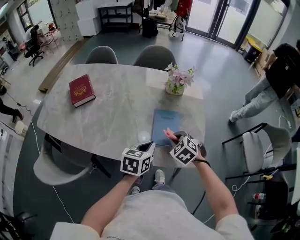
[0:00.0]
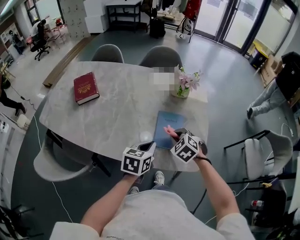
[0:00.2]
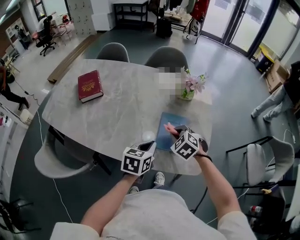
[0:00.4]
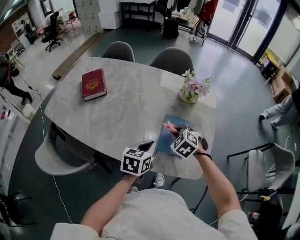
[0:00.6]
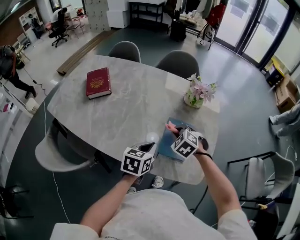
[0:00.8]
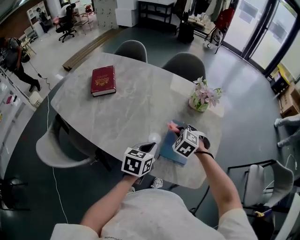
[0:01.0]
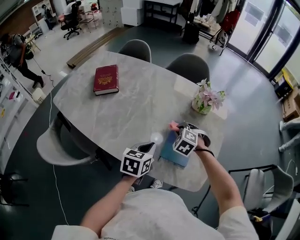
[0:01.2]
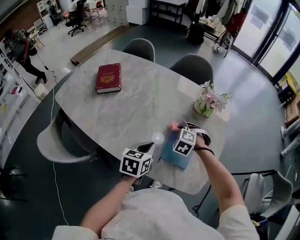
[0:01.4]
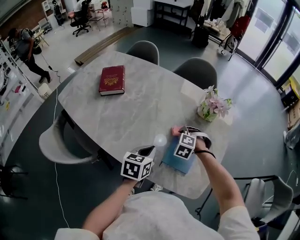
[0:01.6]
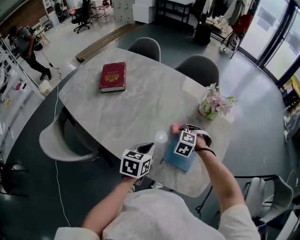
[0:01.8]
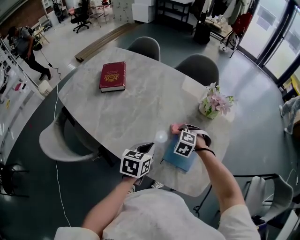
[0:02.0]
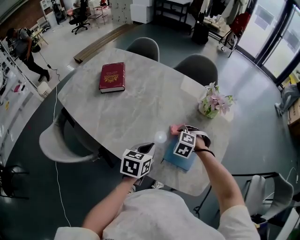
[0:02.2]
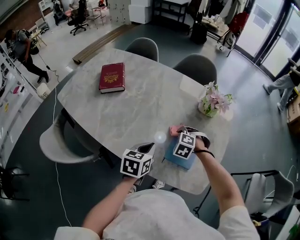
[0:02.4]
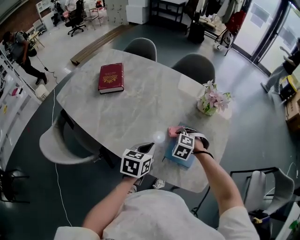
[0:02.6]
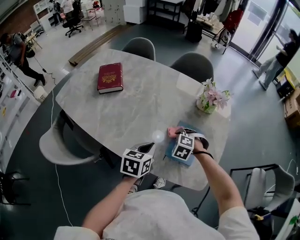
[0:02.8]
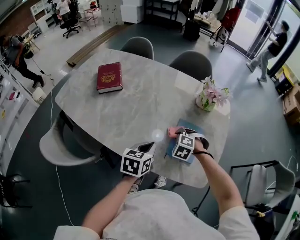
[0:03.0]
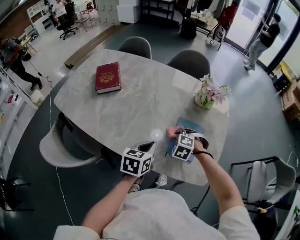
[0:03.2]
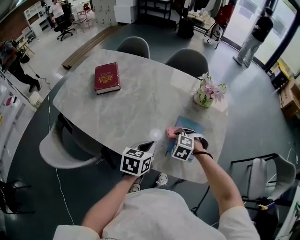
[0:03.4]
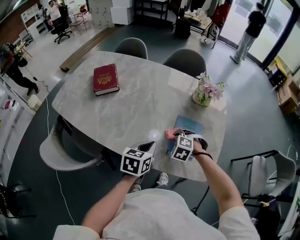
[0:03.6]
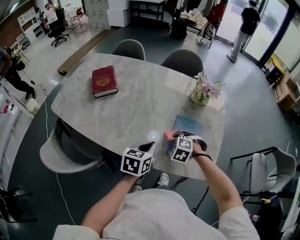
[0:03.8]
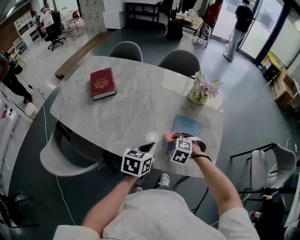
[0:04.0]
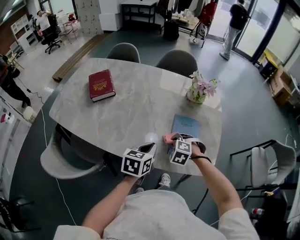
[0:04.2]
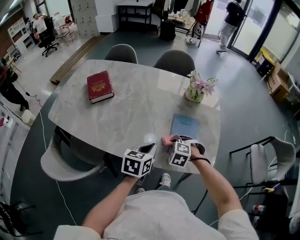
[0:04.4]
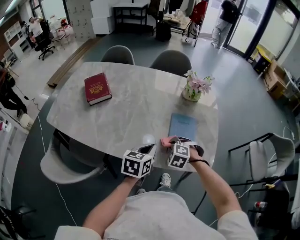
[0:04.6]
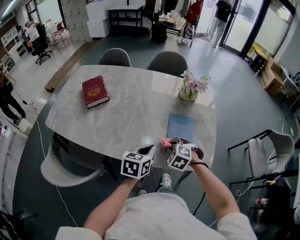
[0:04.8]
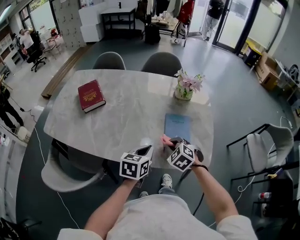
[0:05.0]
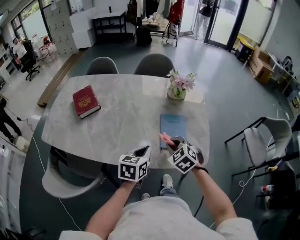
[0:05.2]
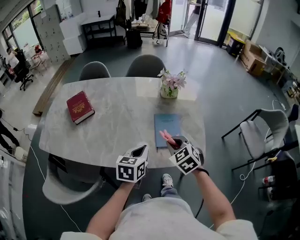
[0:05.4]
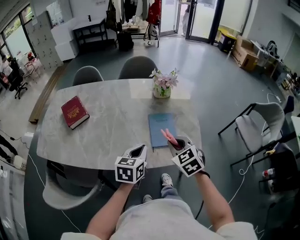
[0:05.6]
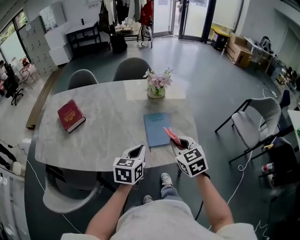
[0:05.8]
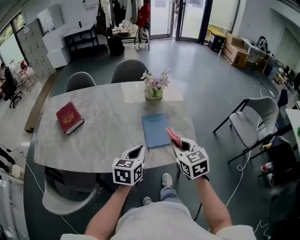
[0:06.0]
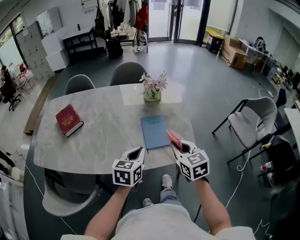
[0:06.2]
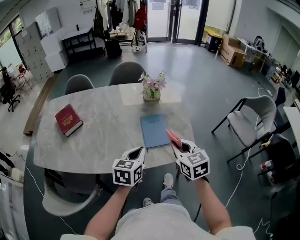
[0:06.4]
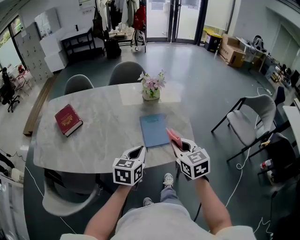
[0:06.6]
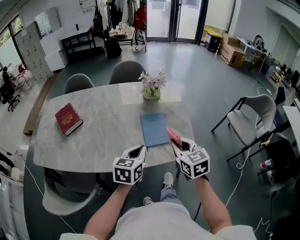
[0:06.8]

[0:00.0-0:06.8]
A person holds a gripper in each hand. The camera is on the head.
0.0 to 1.4 s: The right gripper heads forward and to the left, covering approximately 15 cm, and turns by some 40 degrees. Meanwhile the left gripper heads to the left and forward, covering some 10 cm.
1.4 to 2.8 s: The right gripper ends up some 5 cm from where it was.
2.8 to 4.0 s: The right gripper shifts about 5 cm backward.
4.0 to 5.4 s: The right gripper moves upward and backward, approximately 15 cm, and rolls clockwise, seen from behind, by roughly 40 degrees.
5.4 to 6.8 s: The right gripper is displaced to the right and upward by about 10 cm, and turns by approximately 30 degrees, while the left gripper shifts by approximately 5 cm.

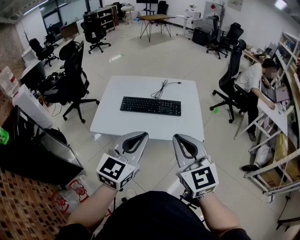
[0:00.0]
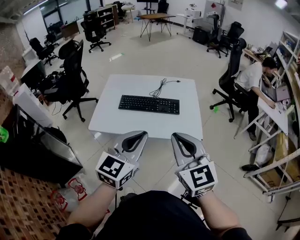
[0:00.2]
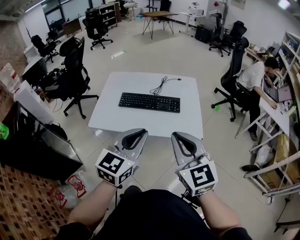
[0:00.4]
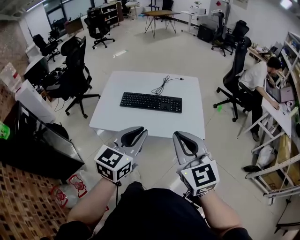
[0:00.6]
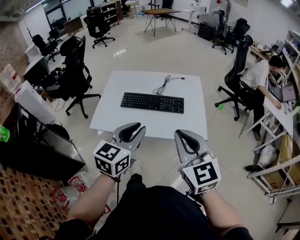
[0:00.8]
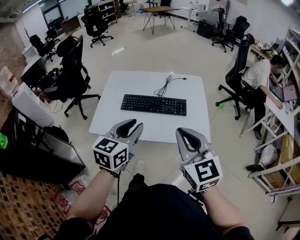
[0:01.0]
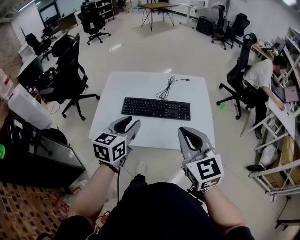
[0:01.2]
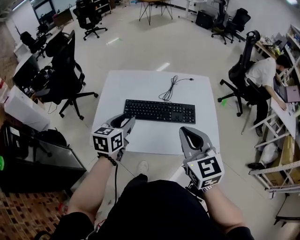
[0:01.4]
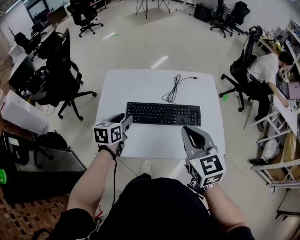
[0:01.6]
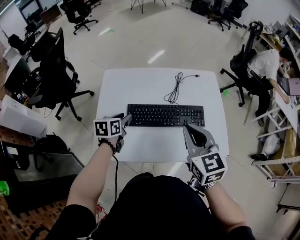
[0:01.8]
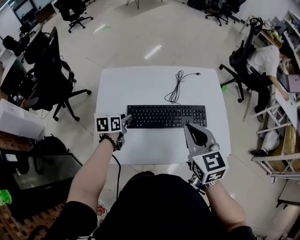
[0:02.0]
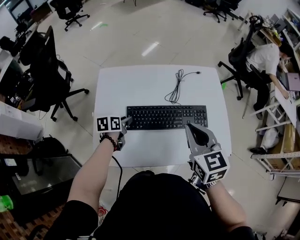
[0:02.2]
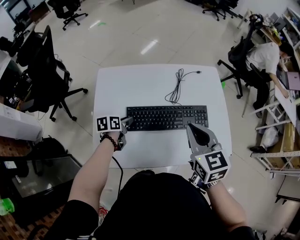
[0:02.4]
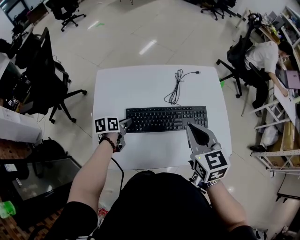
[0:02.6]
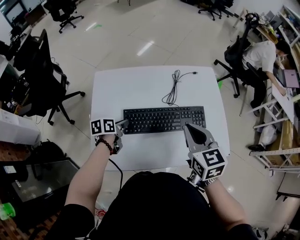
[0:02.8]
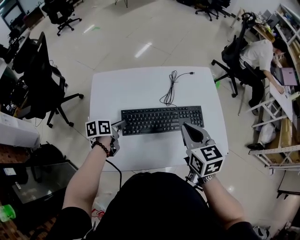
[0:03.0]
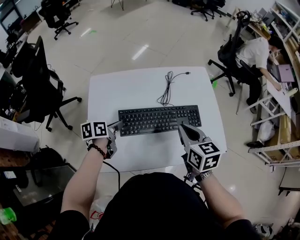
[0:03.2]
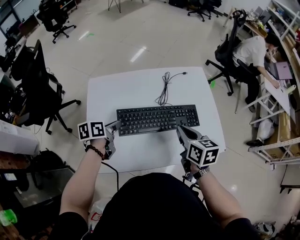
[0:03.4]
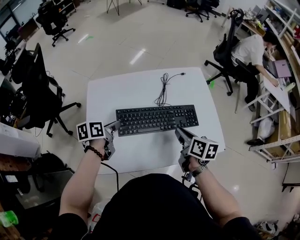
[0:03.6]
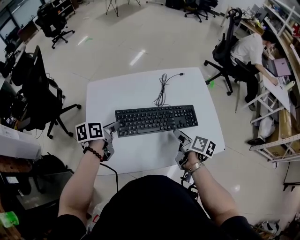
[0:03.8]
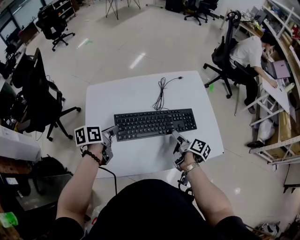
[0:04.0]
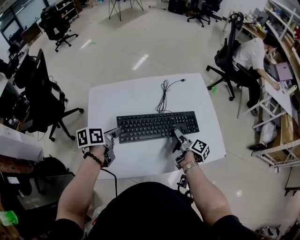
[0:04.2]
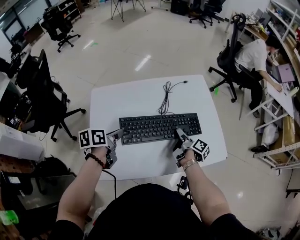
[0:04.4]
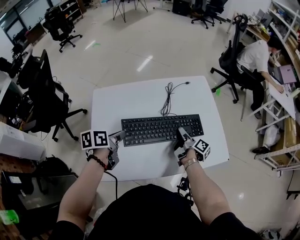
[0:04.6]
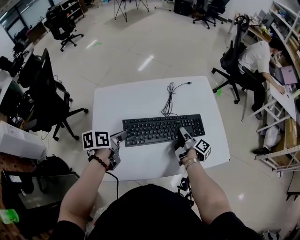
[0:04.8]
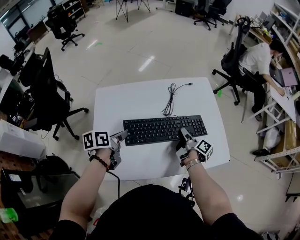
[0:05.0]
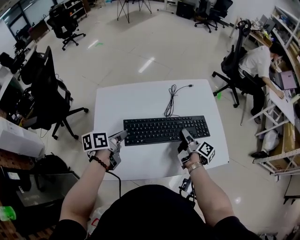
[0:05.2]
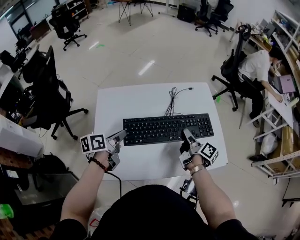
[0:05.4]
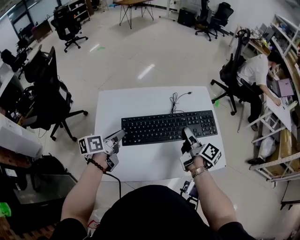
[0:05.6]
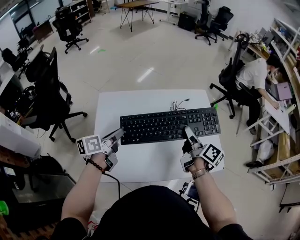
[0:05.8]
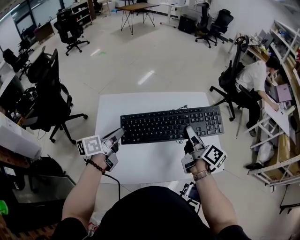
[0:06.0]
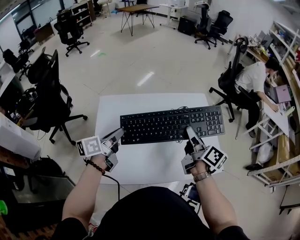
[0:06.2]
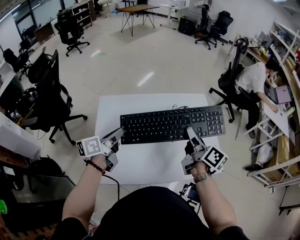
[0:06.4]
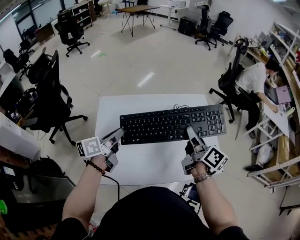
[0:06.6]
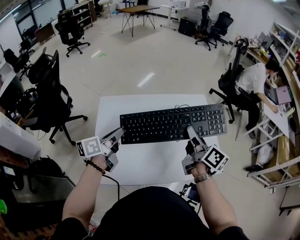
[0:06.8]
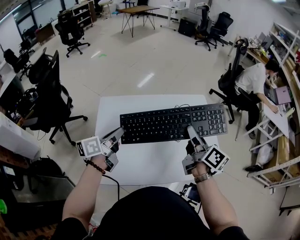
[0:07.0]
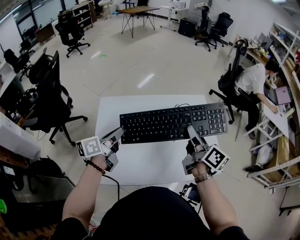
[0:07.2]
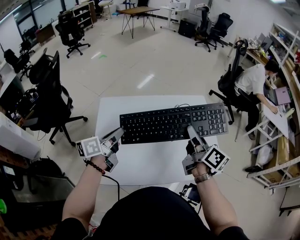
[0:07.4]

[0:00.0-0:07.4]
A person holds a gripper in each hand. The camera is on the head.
0.0 to 1.4 s: The left gripper is displaced forward, downward and to the left by about 30 cm, turns by some 30 degrees, and opens. Meanwhile the right gripper heads forward, covering about 20 cm.
1.4 to 3.0 s: The left gripper heads downward, forward and to the left, covering about 25 cm, and changes its angle by roughly 40 degrees, while the right gripper is displaced forward and downward by some 15 cm, and swivels some 20 degrees.
3.0 to 4.4 s: The right gripper travels downward by roughly 20 cm, twists about 80 degrees clockwise, seen from behind, and opens up; the left gripper goes approximately 10 cm upward.
4.4 to 6.0 s: The left gripper travels upward by some 5 cm, and turns by some 30 degrees, while the right gripper moves upward, approximately 20 cm, changes its angle by about 30 degrees, and closes.
6.0 to 7.4 s: The grippers move only a little.

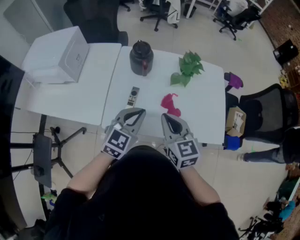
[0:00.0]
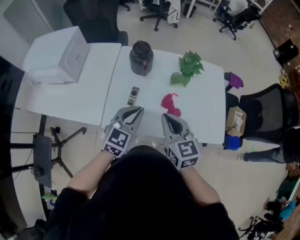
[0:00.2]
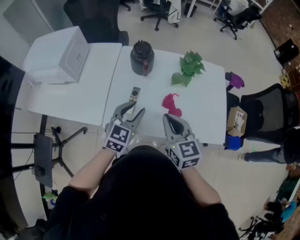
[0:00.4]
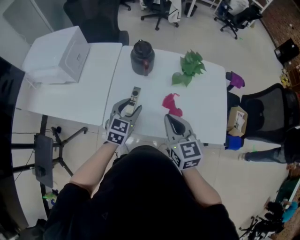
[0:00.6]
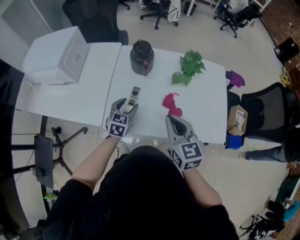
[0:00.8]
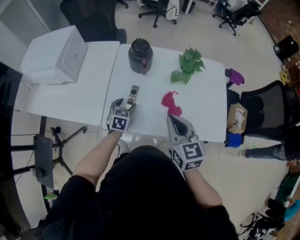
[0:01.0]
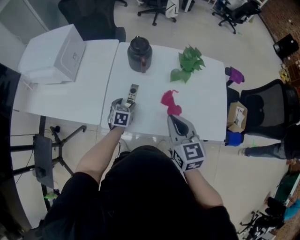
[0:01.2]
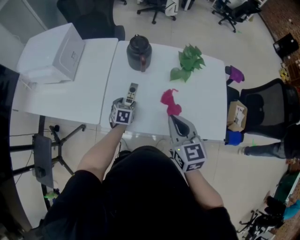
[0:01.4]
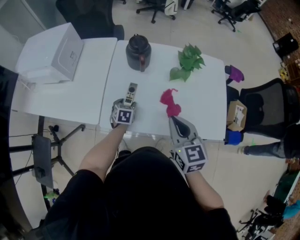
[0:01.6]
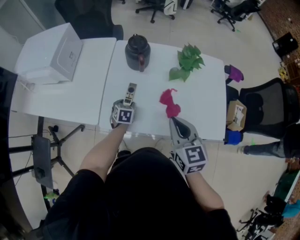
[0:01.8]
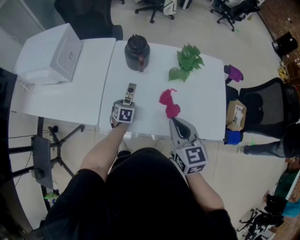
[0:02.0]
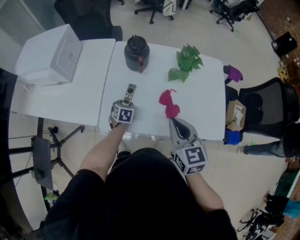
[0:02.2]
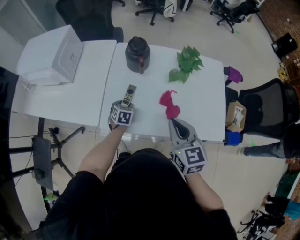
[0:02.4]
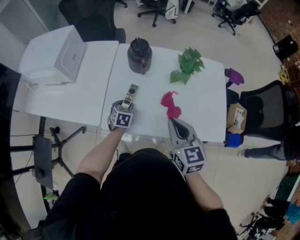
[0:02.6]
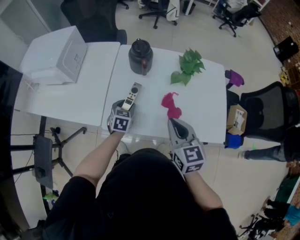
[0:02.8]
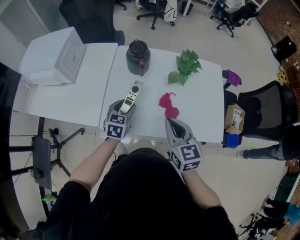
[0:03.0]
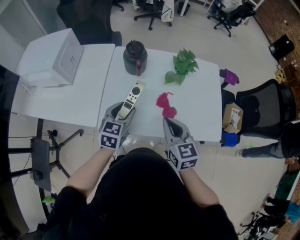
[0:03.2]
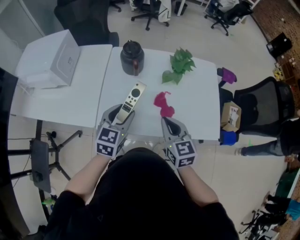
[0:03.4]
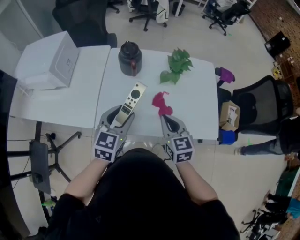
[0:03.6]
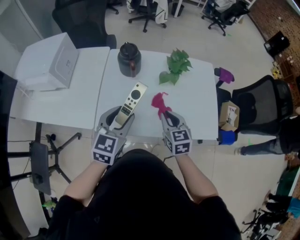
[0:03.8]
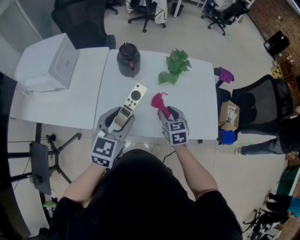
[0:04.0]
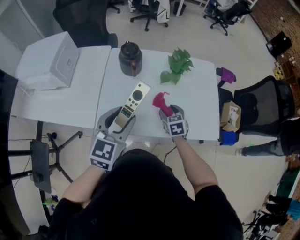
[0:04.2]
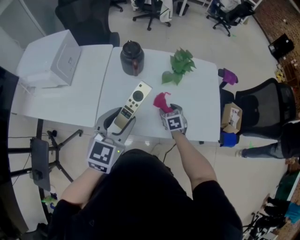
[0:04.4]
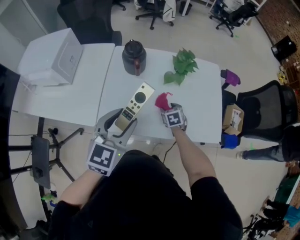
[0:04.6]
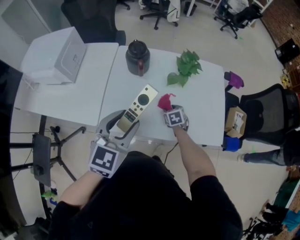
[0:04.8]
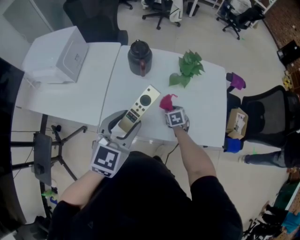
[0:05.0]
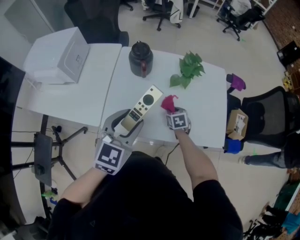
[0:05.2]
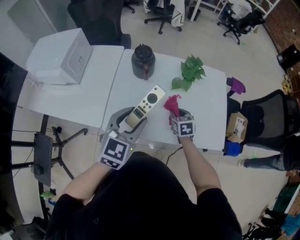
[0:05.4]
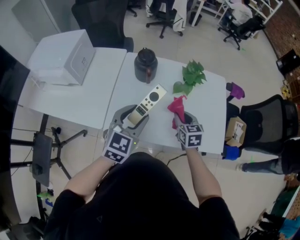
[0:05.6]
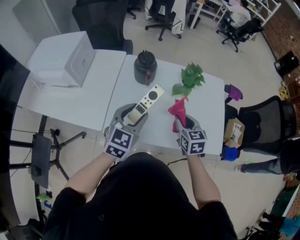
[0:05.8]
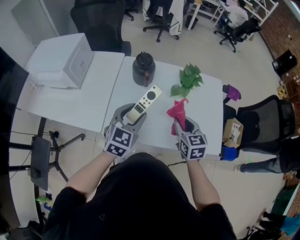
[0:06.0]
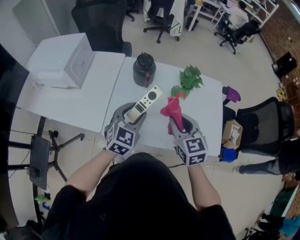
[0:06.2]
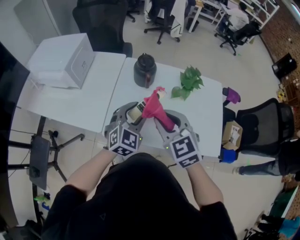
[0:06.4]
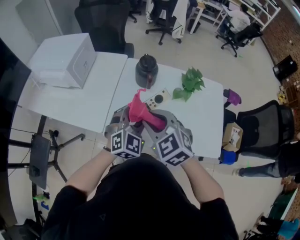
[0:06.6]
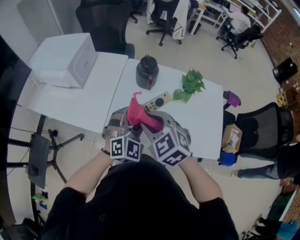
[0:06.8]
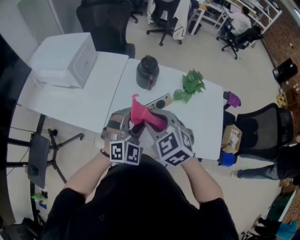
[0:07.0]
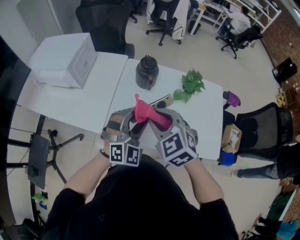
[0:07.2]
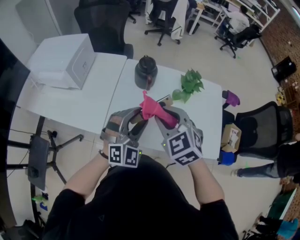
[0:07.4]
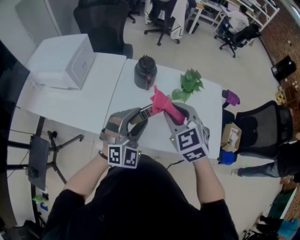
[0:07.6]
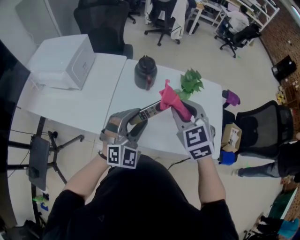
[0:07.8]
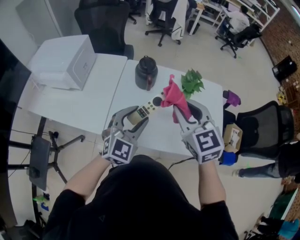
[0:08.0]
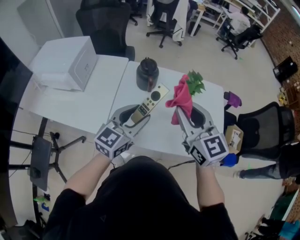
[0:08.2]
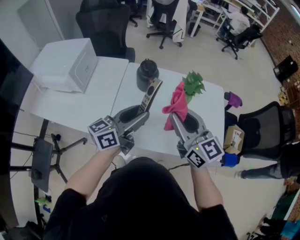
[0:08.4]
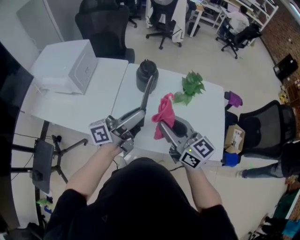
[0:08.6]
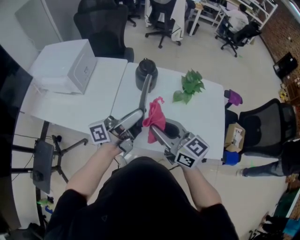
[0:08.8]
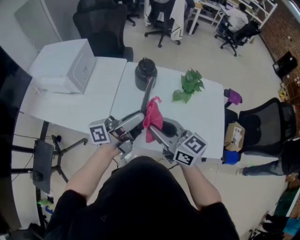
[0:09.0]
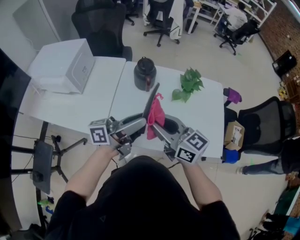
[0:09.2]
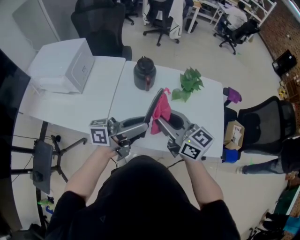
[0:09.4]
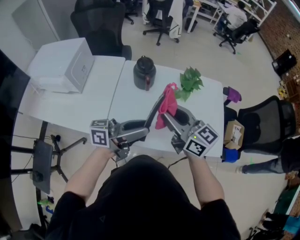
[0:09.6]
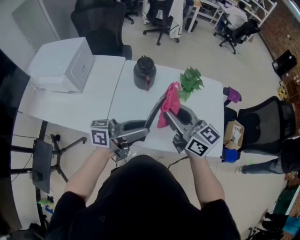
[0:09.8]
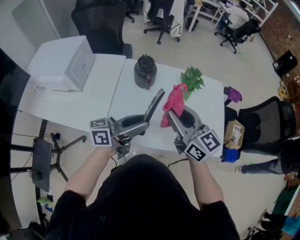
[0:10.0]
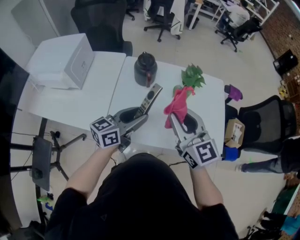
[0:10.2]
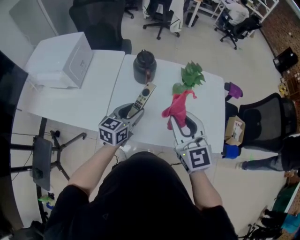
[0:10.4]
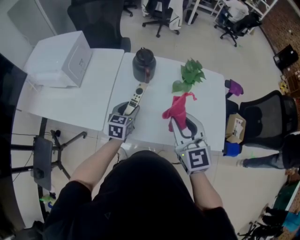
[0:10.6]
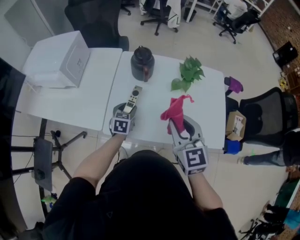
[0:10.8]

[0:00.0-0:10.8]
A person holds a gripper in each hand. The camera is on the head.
0.0 to 1.6 s: The left gripper travels downward by some 25 cm, points its fingers about 30 degrees further downward, and opens up.
1.6 to 3.0 s: The left gripper heads upward, covering some 15 cm.
3.0 to 4.6 s: The left gripper shifts some 20 cm upward and backward, and rotates some 20 degrees. The right gripper moves downward and forward, some 25 cm, tilts its fingers some 30 degrees downward, and opens up.
4.6 to 6.2 s: The right gripper moves upward, about 25 cm, tilts its fingers approximately 30 degrees upward, and closes its fingers. The left gripper shifts approximately 10 cm forward and downward.
6.2 to 7.8 s: The left gripper shifts by about 5 cm, and rotates some 30 degrees; the right gripper heads upward, covering roughly 5 cm, reaches roughly 15 cm to the left, then returns, and rotates some 20 degrees.
7.8 to 9.2 s: The left gripper moves upward, approximately 5 cm, and rotates around the line of its fingers by approximately 100 degrees, counterclockwise from behind. The right gripper goes approximately 10 cm to the left and backward, and changes its angle by approximately 50 degrees.
9.2 to 10.8 s: The left gripper is displaced downward by about 25 cm, and points its fingers roughly 60 degrees further downward. The right gripper heads to the right, covering roughly 10 cm, and turns by roughly 40 degrees.
